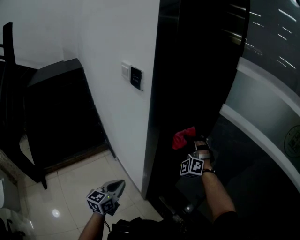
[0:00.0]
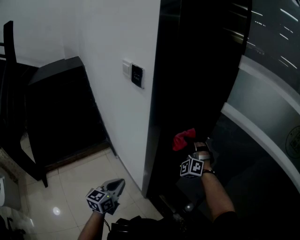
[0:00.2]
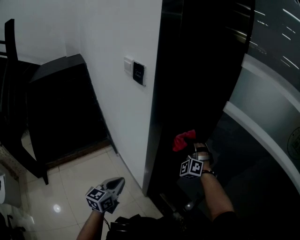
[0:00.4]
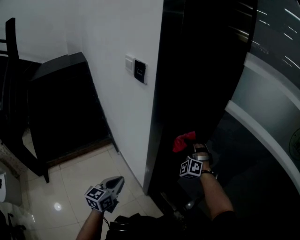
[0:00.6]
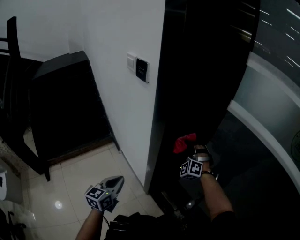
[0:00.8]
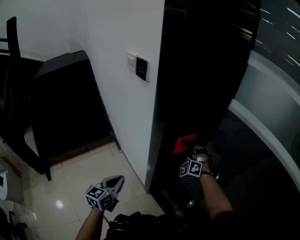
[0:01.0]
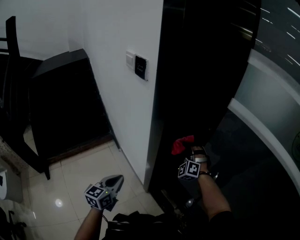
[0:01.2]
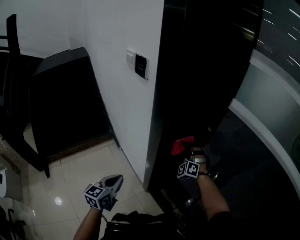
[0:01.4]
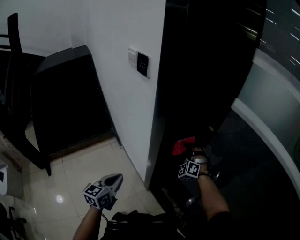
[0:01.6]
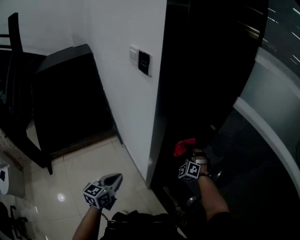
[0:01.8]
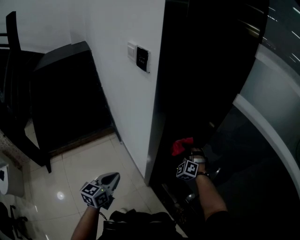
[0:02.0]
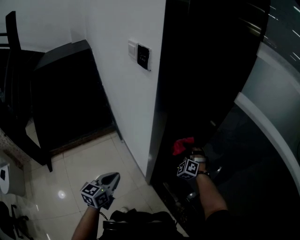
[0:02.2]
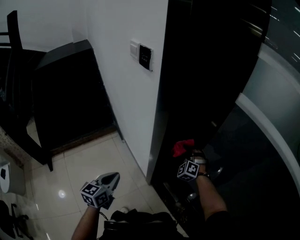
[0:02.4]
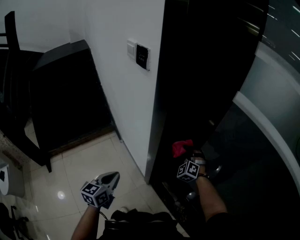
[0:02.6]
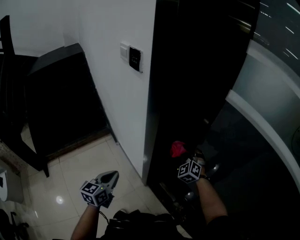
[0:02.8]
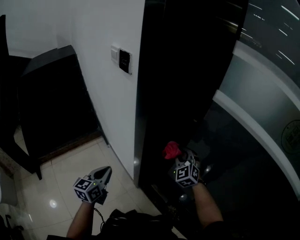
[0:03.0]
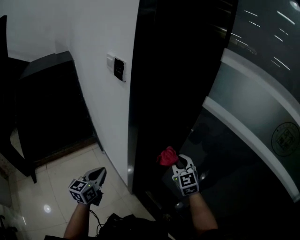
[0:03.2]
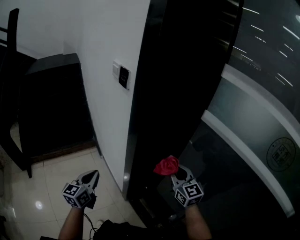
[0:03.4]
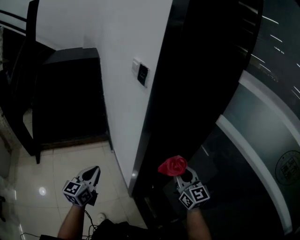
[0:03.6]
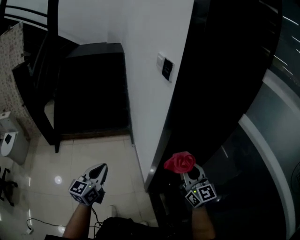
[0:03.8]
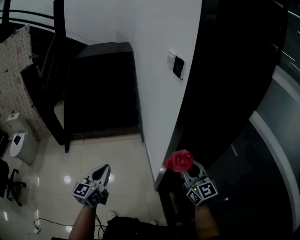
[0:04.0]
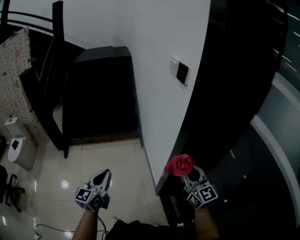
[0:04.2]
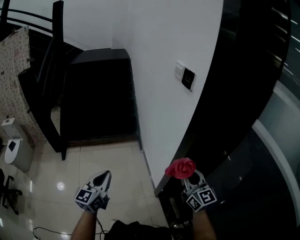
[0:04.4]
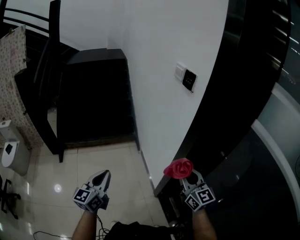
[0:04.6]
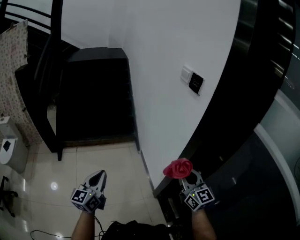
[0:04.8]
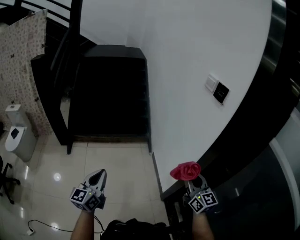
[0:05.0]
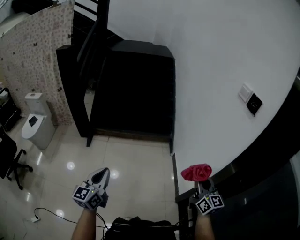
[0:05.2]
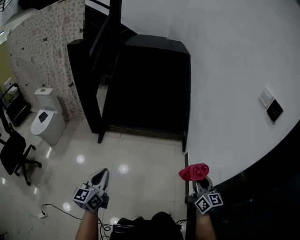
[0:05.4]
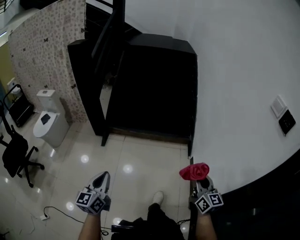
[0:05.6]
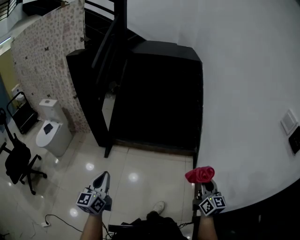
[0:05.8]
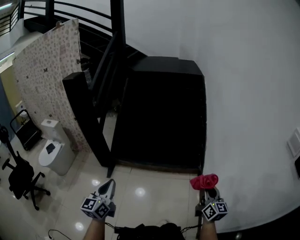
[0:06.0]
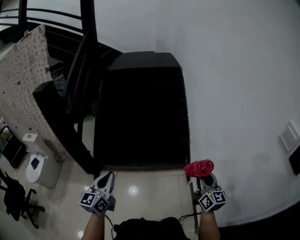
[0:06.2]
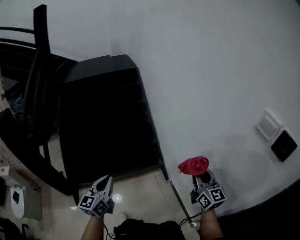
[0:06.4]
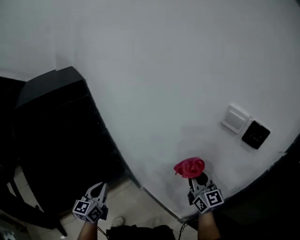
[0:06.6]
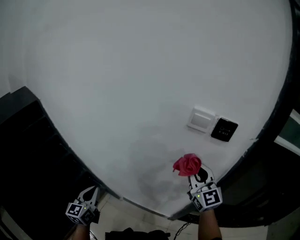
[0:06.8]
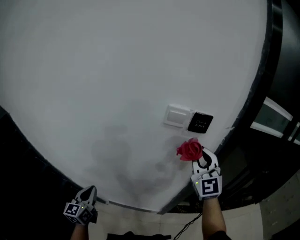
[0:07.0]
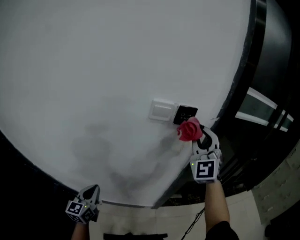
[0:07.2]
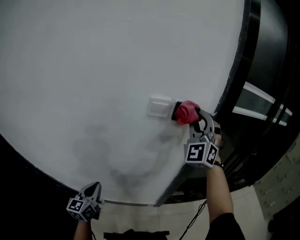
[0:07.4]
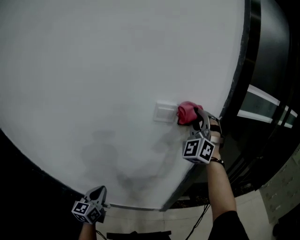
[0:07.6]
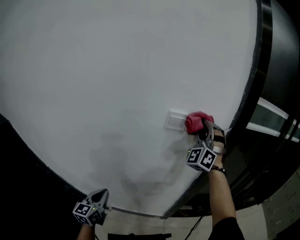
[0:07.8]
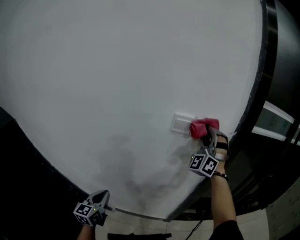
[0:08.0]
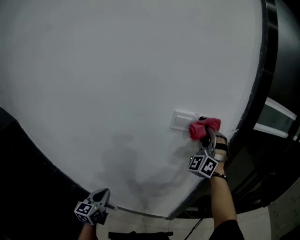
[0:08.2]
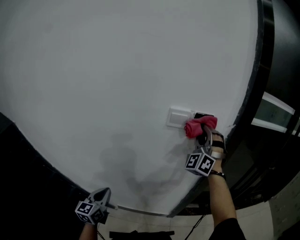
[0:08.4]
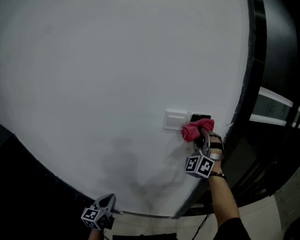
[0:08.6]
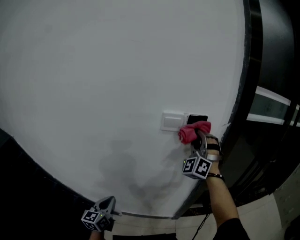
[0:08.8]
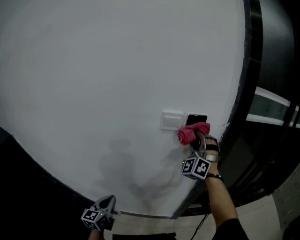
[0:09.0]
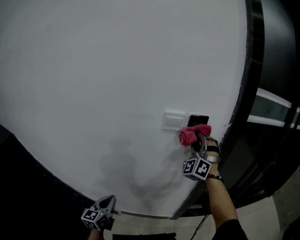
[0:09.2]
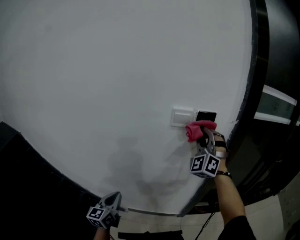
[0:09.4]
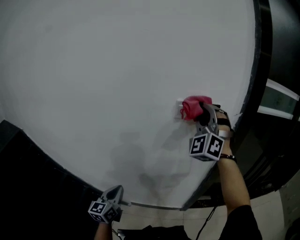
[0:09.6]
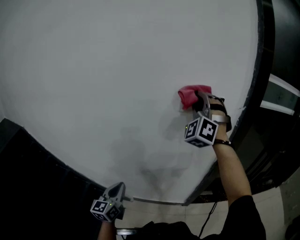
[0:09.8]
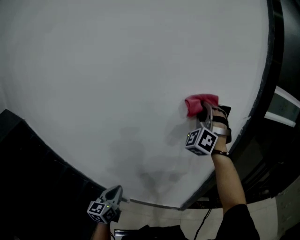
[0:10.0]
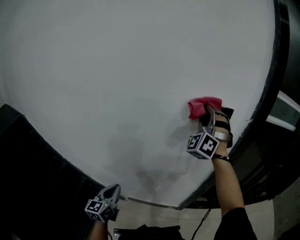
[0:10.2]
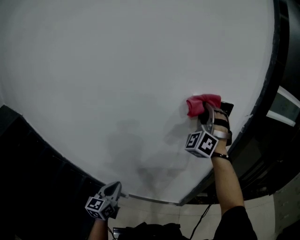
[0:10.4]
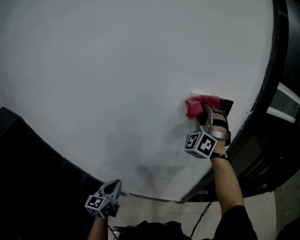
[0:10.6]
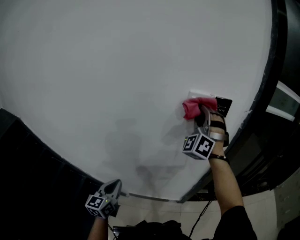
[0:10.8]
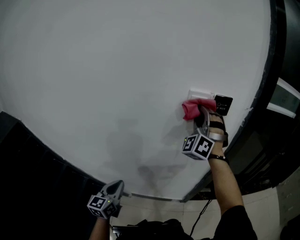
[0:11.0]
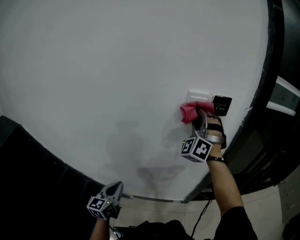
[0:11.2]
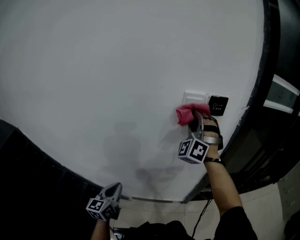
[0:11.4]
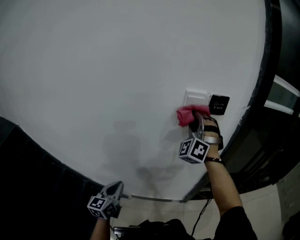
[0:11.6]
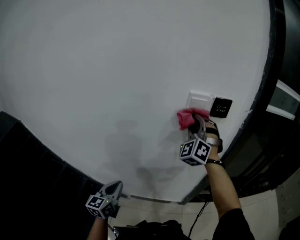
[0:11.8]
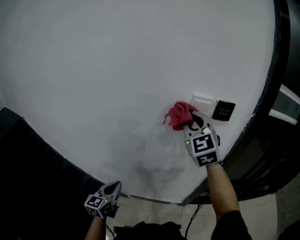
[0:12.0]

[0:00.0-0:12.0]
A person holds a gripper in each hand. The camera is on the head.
0:00.0 to 0:01.6: The right gripper is displaced downward by about 15 cm.
0:01.6 to 0:03.0: The right gripper goes some 5 cm backward, and changes its angle by roughly 30 degrees.
0:03.0 to 0:04.4: The right gripper shifts by some 20 cm, and changes its angle by about 60 degrees, while the left gripper shifts by about 20 cm, and swivels about 30 degrees.
0:04.4 to 0:06.0: The pair of grippers is taken forward and to the left, approximately 40 cm. The left gripper changes its angle by about 30 degrees; the right gripper swivels approximately 20 degrees.
0:06.0 to 0:07.6: The left gripper shifts by approximately 60 cm, and swivels approximately 100 degrees, while the right gripper heads upward, covering roughly 40 cm, and changes its angle by about 140 degrees.
0:07.6 to 0:09.0: The right gripper travels downward by roughly 10 cm.
0:09.0 to 0:10.4: The right gripper goes some 10 cm to the left and upward, while the left gripper ends up some 5 cm from where it was.
0:10.4 to 0:12.0: The right gripper goes some 5 cm to the left, and twists approximately 50 degrees clockwise, seen from behind.

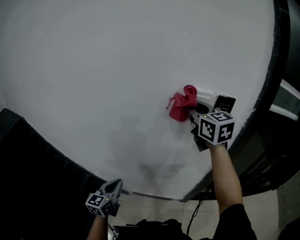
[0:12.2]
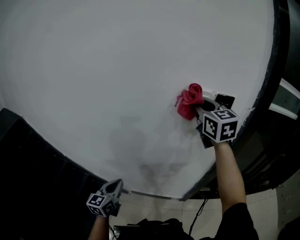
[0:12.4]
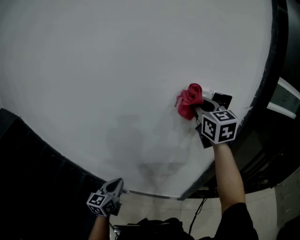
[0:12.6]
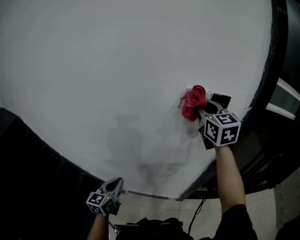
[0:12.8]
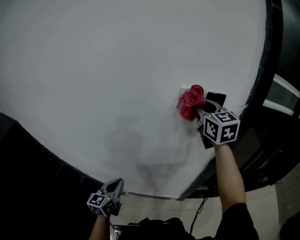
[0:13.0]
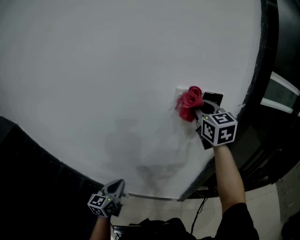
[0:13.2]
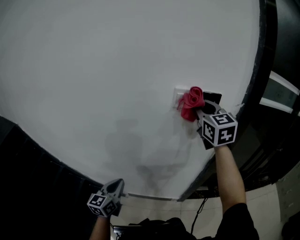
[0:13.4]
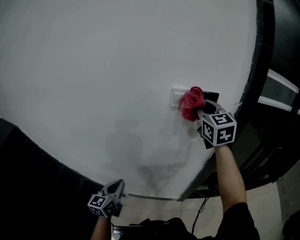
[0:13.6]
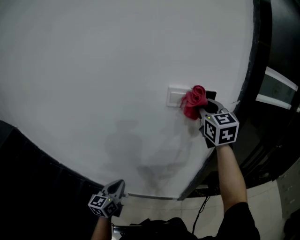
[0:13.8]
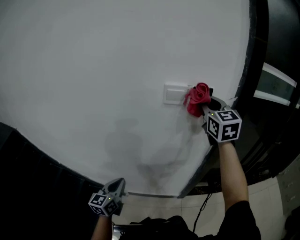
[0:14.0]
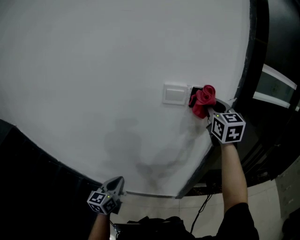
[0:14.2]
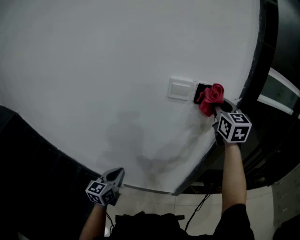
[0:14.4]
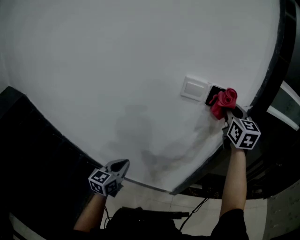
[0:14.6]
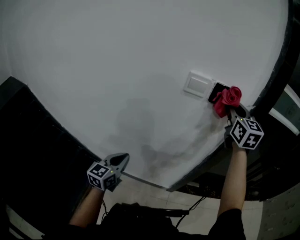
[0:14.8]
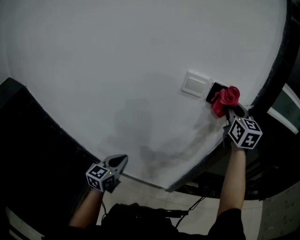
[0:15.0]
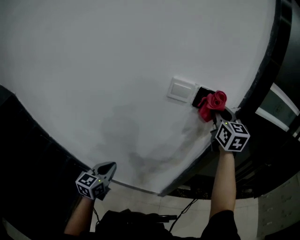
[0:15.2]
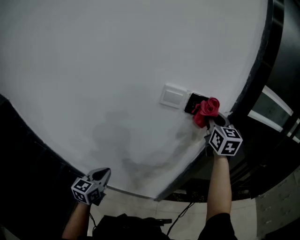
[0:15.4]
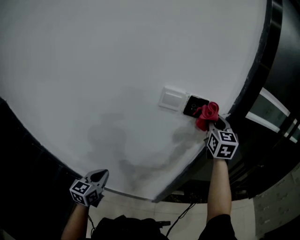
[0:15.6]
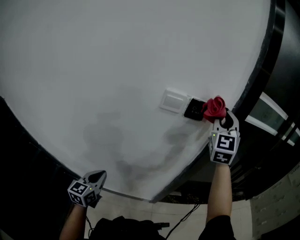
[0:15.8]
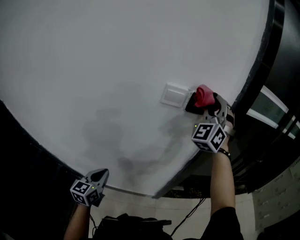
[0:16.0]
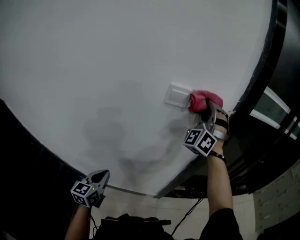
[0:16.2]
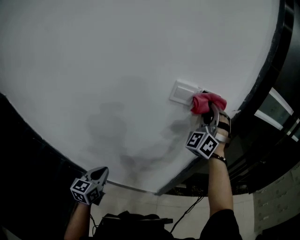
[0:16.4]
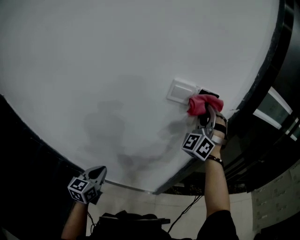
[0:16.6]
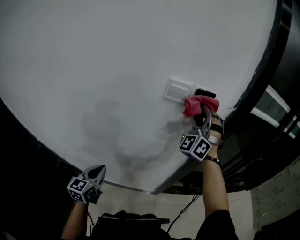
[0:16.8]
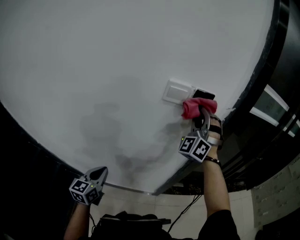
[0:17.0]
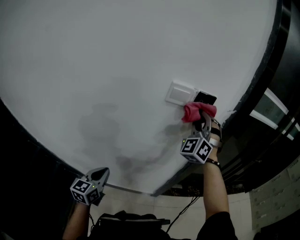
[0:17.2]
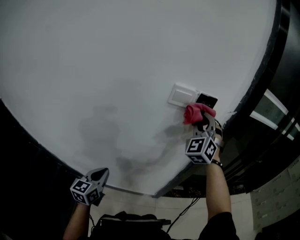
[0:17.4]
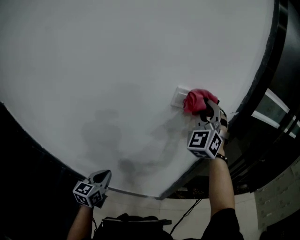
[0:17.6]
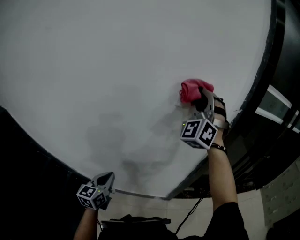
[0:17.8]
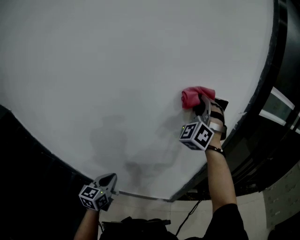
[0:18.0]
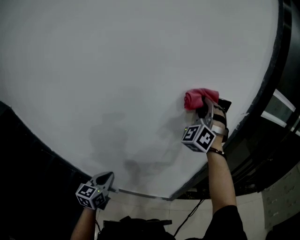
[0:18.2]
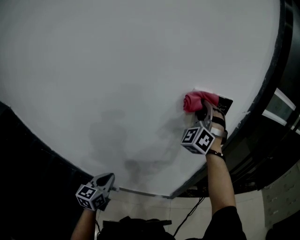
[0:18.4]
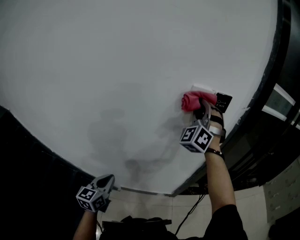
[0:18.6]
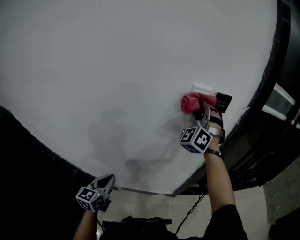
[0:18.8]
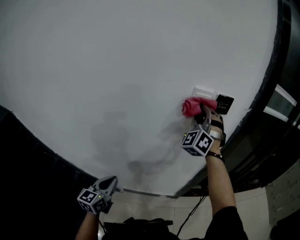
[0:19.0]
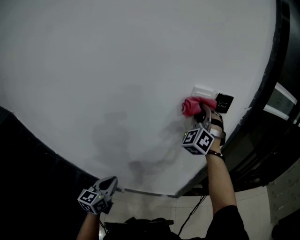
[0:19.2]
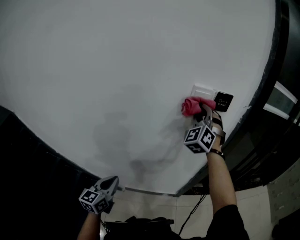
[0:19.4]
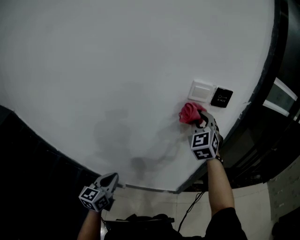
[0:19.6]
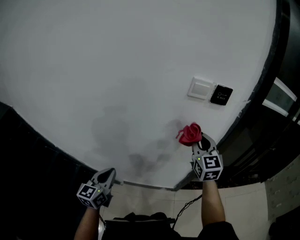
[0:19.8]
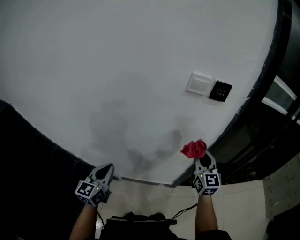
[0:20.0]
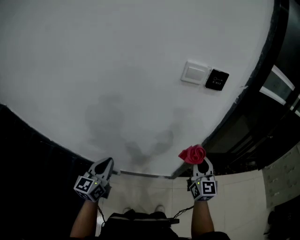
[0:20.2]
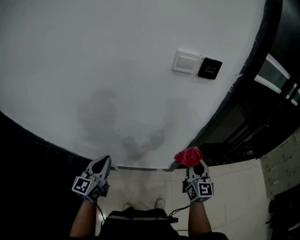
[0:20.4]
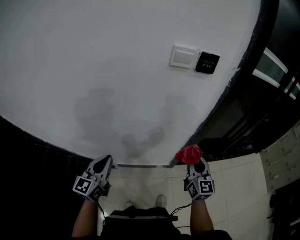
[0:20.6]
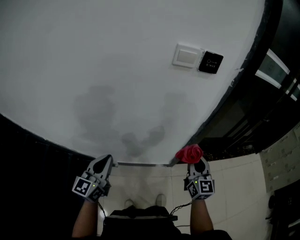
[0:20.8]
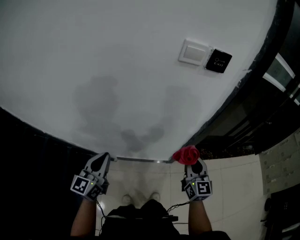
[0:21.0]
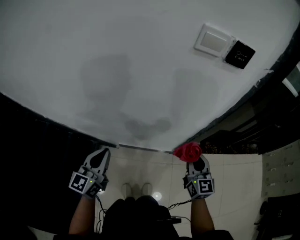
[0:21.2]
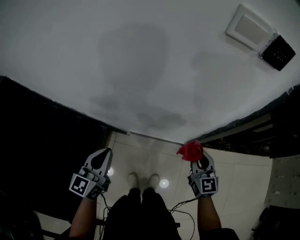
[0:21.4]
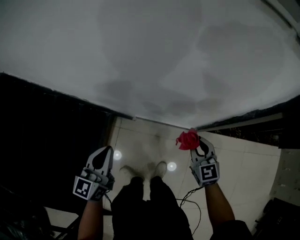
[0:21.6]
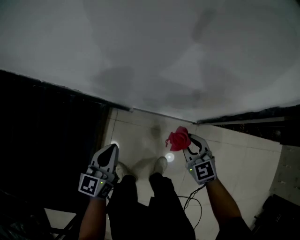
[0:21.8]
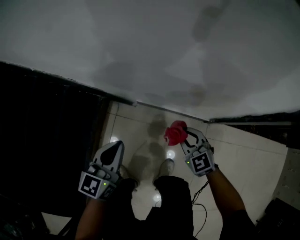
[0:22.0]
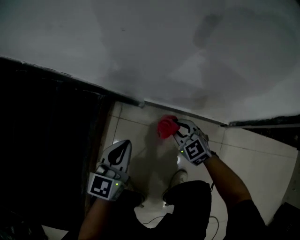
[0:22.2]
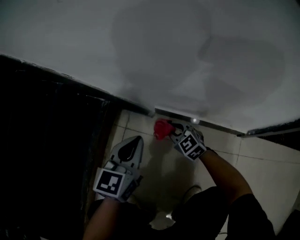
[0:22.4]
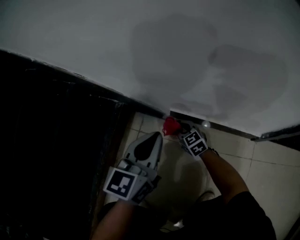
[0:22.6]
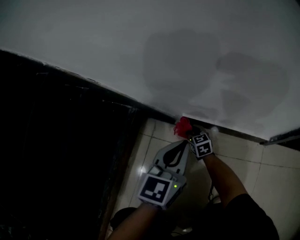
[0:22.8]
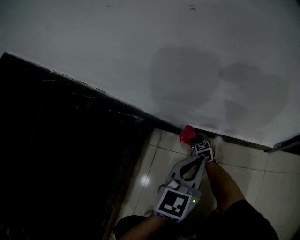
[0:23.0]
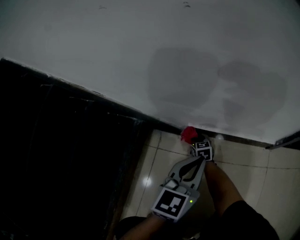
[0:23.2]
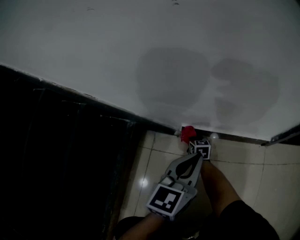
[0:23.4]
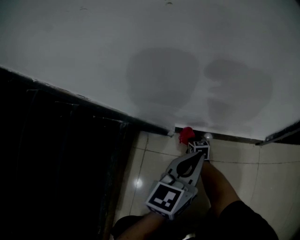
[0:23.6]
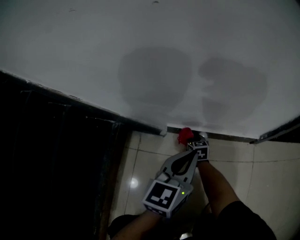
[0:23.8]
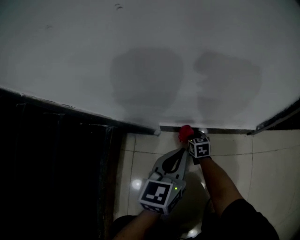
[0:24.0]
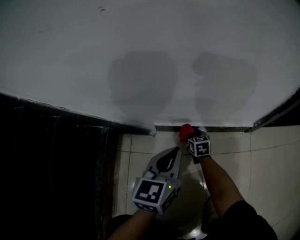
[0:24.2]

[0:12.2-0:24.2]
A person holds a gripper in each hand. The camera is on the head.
0:12.2 to 0:13.8: The right gripper heads to the right, covering some 10 cm; the left gripper travels to the right by about 5 cm.
0:13.8 to 0:15.2: The right gripper is displaced to the right by about 5 cm.
0:15.2 to 0:16.6: The right gripper shifts some 5 cm to the left, and rotates around the line of its fingers by approximately 70 degrees, counterclockwise from behind.
0:16.6 to 0:18.2: The left gripper shifts about 5 cm to the left. Meanwhile the right gripper is displaced to the left by roughly 10 cm, and reaches roughly 5 cm upward, then returns.
0:18.2 to 0:19.8: The right gripper shifts about 20 cm downward and backward, and rotates around the line of its fingers by some 60 degrees, clockwise from behind.
0:19.8 to 0:21.2: The right gripper heads downward and backward, covering about 20 cm.
0:21.2 to 0:22.6: The grippers both shift downward by approximately 70 cm. The right gripper swivels approximately 50 degrees.
0:22.6 to 0:24.2: The left gripper goes approximately 10 cm to the right, while the right gripper travels to the right and downward by some 15 cm, and changes its angle by approximately 40 degrees.
